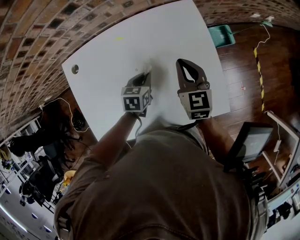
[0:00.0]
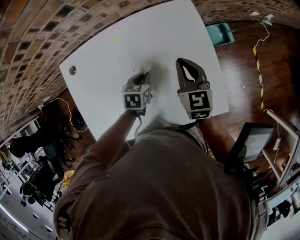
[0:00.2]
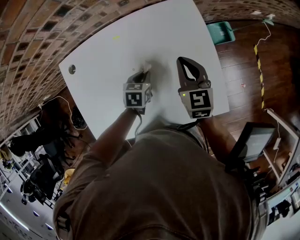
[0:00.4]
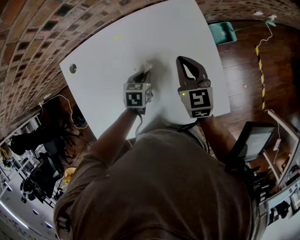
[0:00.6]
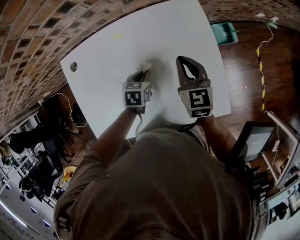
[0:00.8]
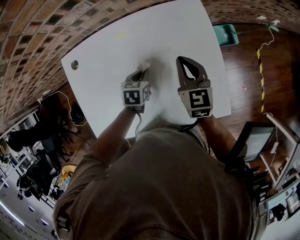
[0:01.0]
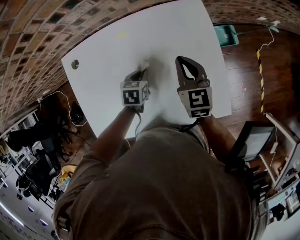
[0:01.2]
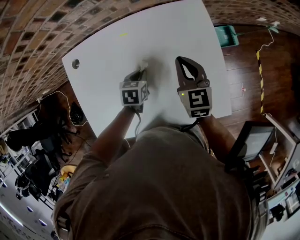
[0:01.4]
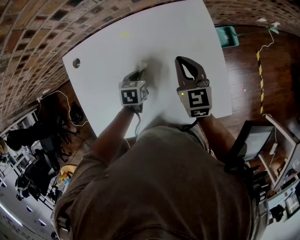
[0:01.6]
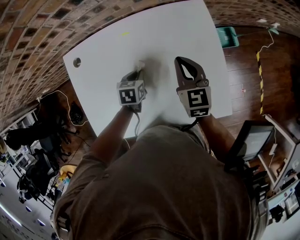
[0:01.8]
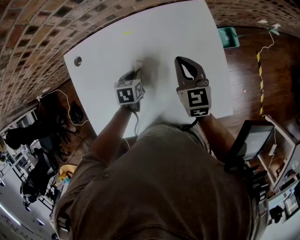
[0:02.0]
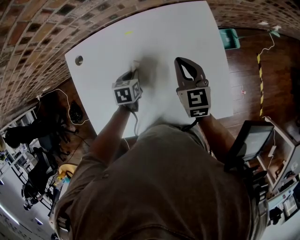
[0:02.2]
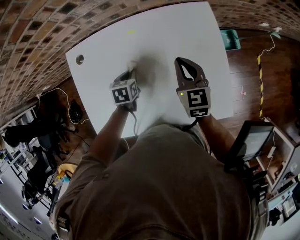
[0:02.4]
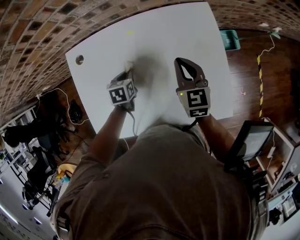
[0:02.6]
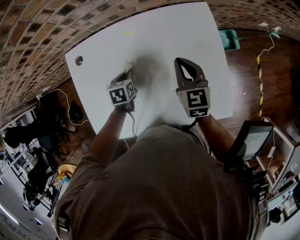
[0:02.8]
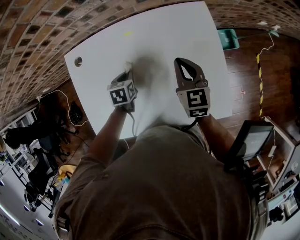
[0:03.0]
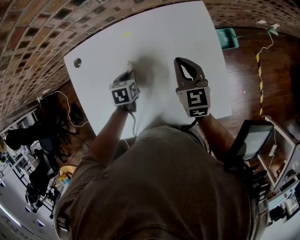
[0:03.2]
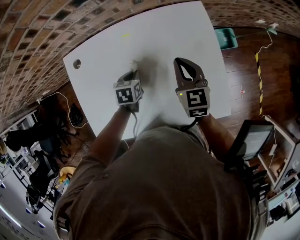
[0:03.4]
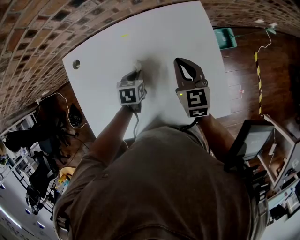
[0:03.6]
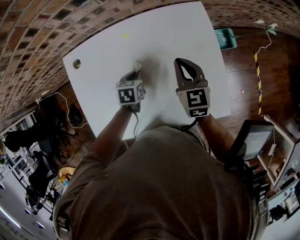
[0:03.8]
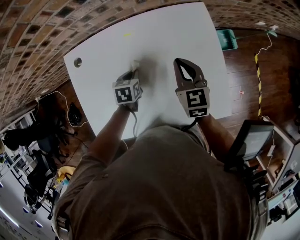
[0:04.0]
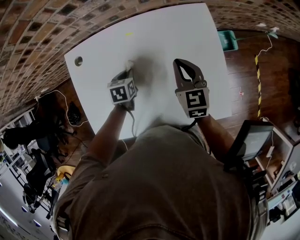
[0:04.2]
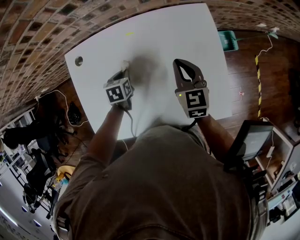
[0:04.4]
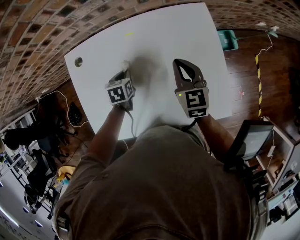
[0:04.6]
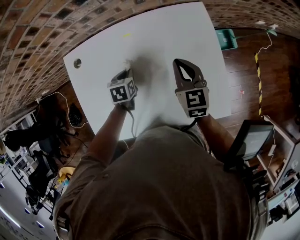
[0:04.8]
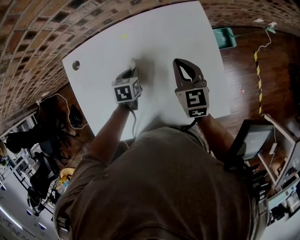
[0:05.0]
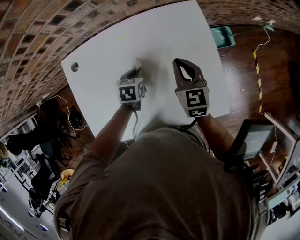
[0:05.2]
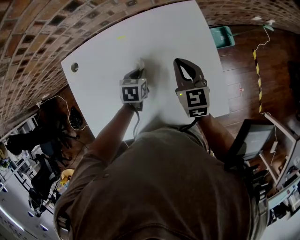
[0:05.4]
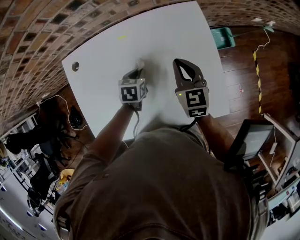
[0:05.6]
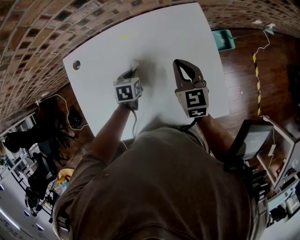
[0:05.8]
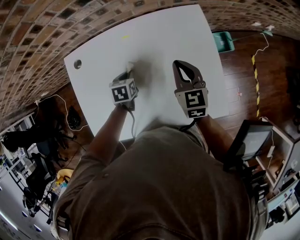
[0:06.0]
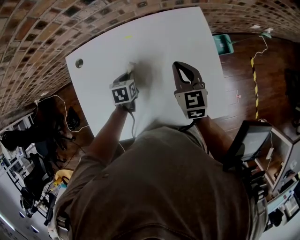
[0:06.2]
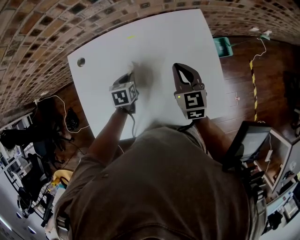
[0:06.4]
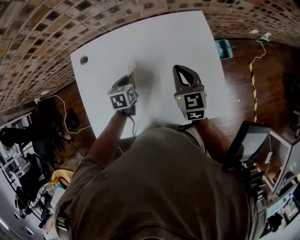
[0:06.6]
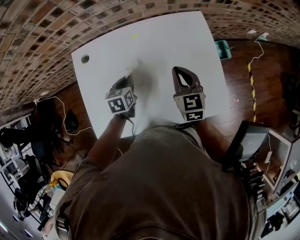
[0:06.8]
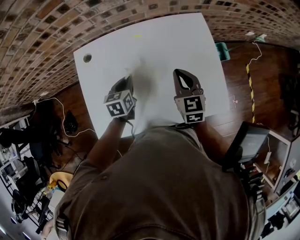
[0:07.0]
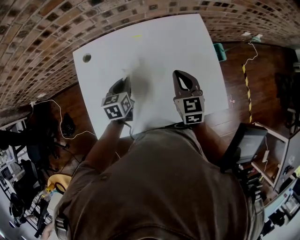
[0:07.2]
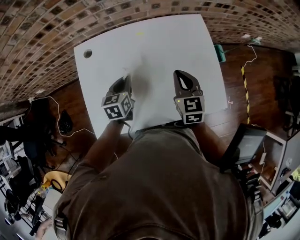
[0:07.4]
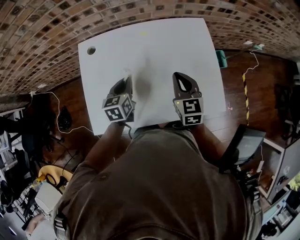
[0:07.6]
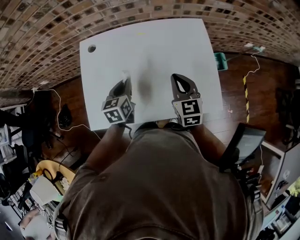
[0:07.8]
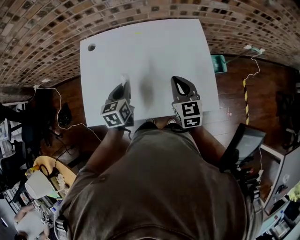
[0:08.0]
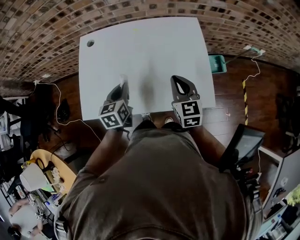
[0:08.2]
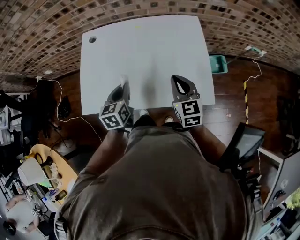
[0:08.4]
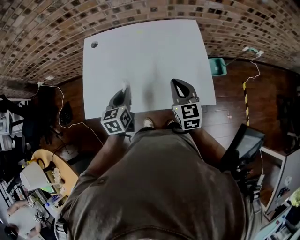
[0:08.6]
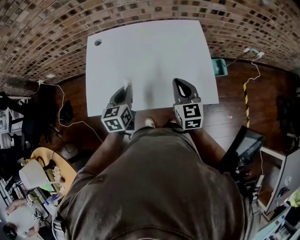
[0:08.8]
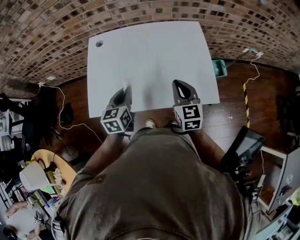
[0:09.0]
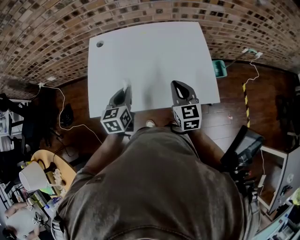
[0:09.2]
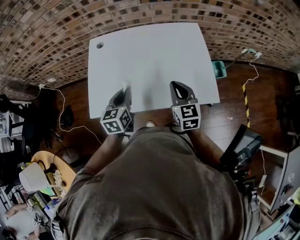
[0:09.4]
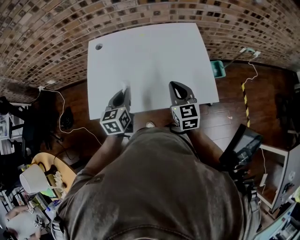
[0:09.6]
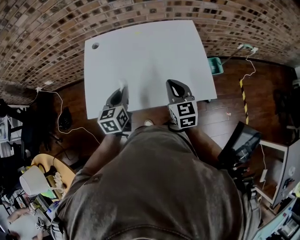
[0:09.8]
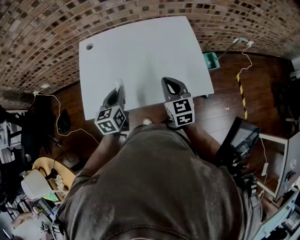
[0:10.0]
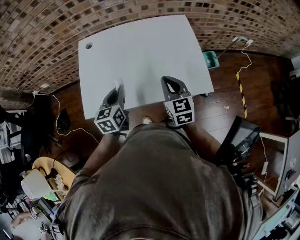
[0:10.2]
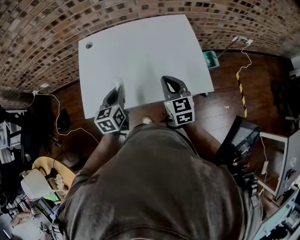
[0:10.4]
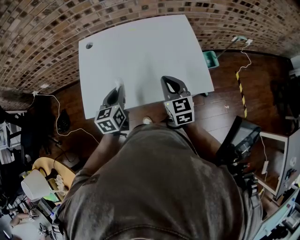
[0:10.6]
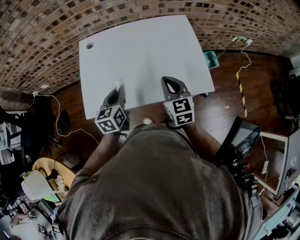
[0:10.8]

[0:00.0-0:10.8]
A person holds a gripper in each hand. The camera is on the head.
0:00.0 to 0:01.6: The left gripper heads to the left, covering approximately 5 cm.
0:01.6 to 0:03.0: The left gripper travels to the left by some 5 cm.
0:03.0 to 0:04.6: The left gripper travels to the right and back again, approximately 5 cm each way.
0:04.6 to 0:06.2: The left gripper travels to the right and back again, approximately 10 cm each way.
0:06.2 to 0:07.8: The left gripper travels upward and backward by some 15 cm, and swivels some 30 degrees; the right gripper shifts about 10 cm backward.
0:07.8 to 0:09.2: The two grippers go approximately 10 cm backward.
0:09.2 to 0:10.8: The grippers move only a little.

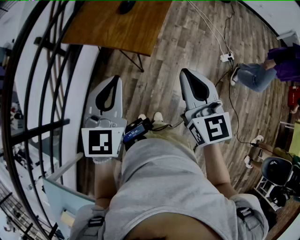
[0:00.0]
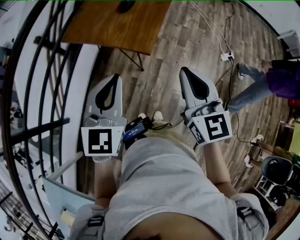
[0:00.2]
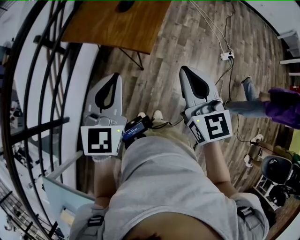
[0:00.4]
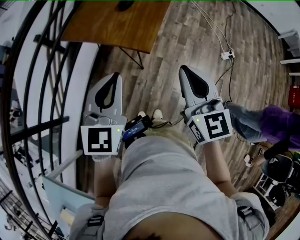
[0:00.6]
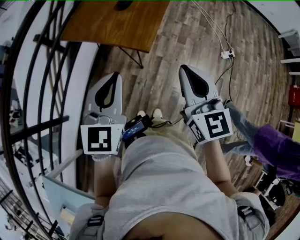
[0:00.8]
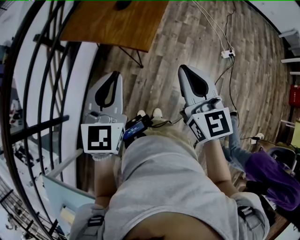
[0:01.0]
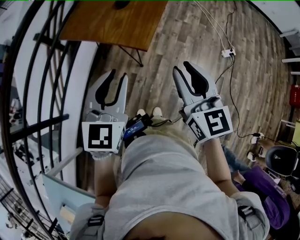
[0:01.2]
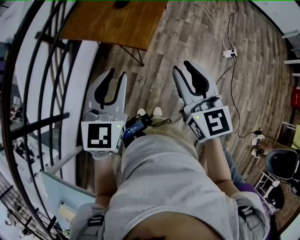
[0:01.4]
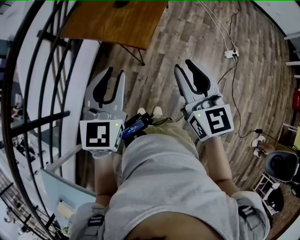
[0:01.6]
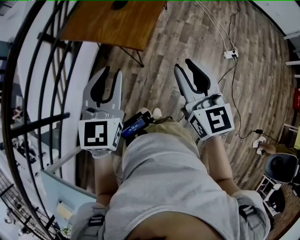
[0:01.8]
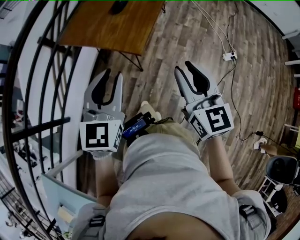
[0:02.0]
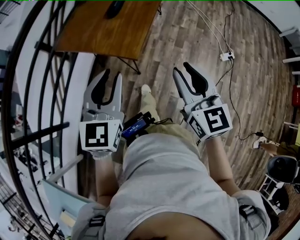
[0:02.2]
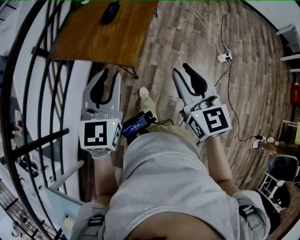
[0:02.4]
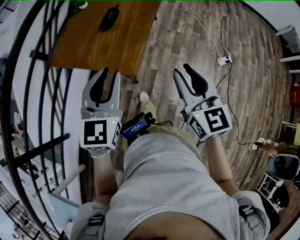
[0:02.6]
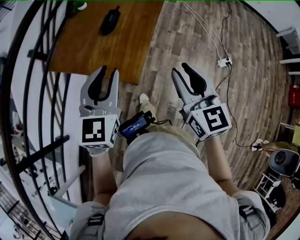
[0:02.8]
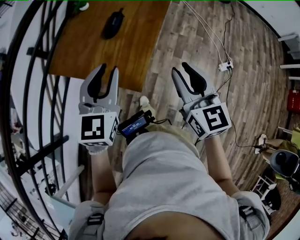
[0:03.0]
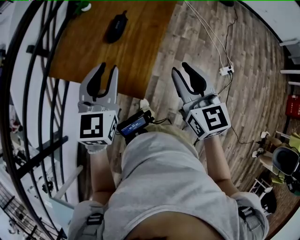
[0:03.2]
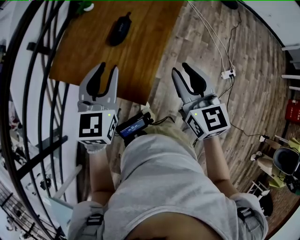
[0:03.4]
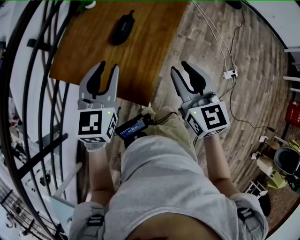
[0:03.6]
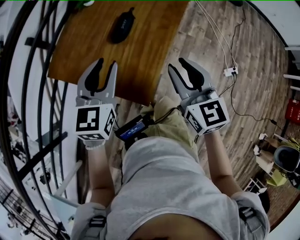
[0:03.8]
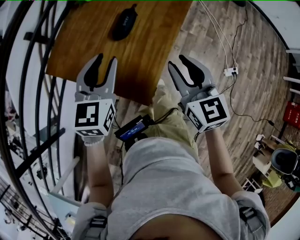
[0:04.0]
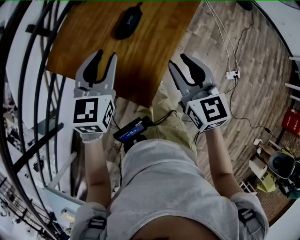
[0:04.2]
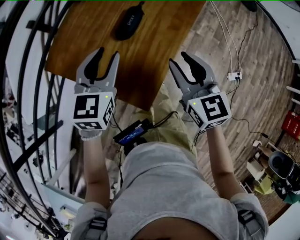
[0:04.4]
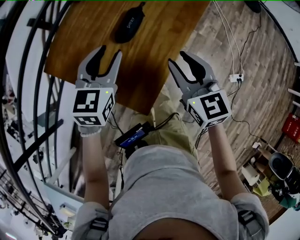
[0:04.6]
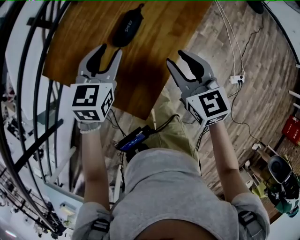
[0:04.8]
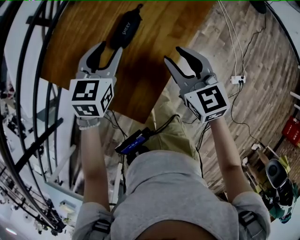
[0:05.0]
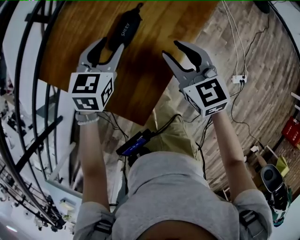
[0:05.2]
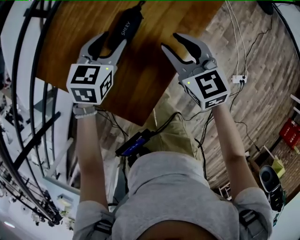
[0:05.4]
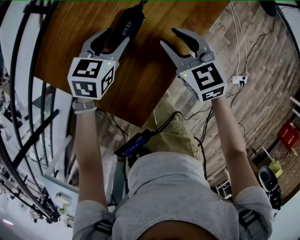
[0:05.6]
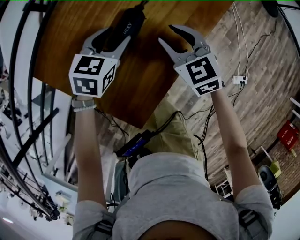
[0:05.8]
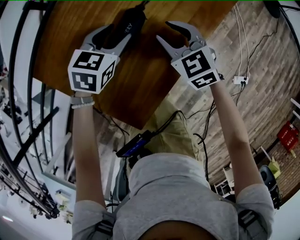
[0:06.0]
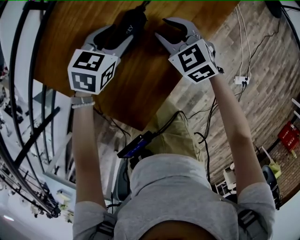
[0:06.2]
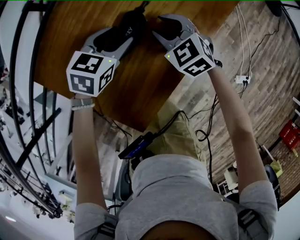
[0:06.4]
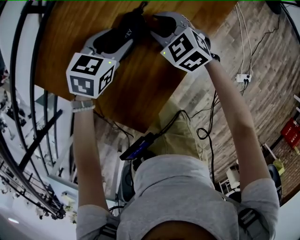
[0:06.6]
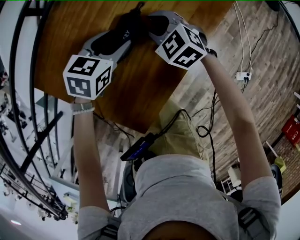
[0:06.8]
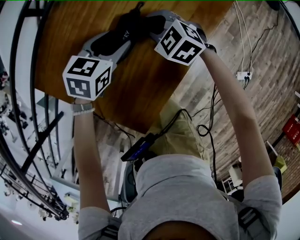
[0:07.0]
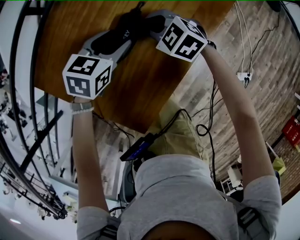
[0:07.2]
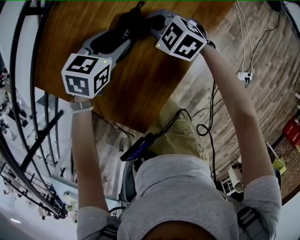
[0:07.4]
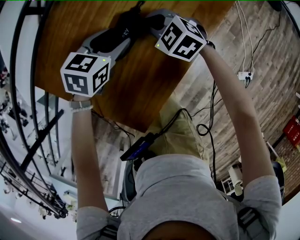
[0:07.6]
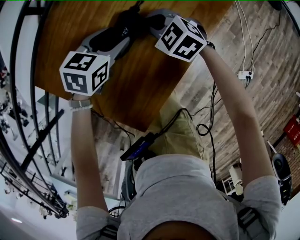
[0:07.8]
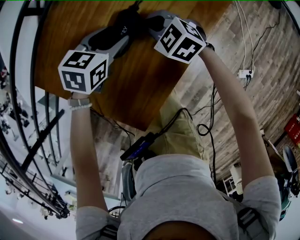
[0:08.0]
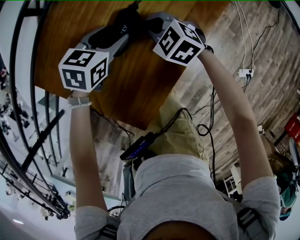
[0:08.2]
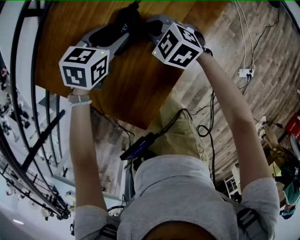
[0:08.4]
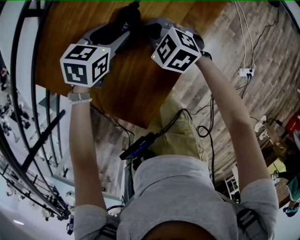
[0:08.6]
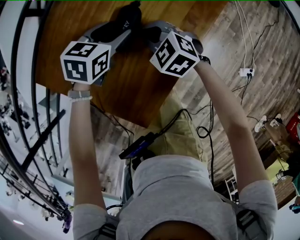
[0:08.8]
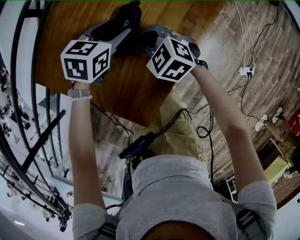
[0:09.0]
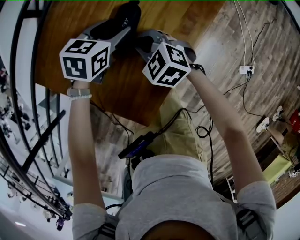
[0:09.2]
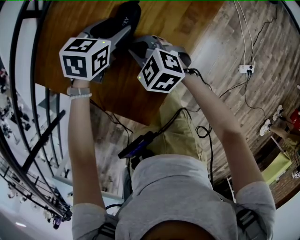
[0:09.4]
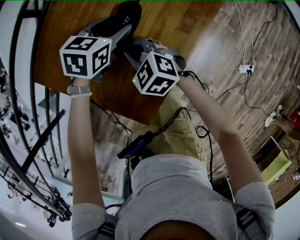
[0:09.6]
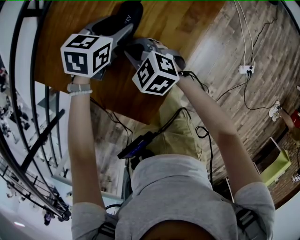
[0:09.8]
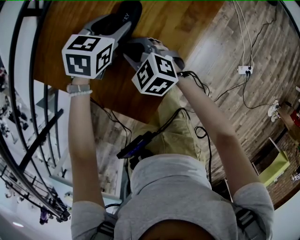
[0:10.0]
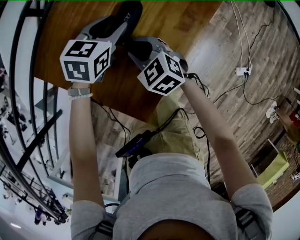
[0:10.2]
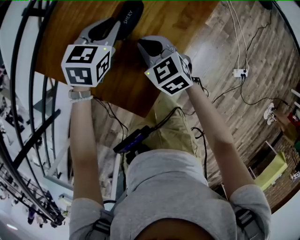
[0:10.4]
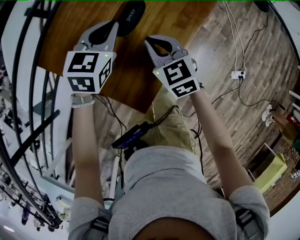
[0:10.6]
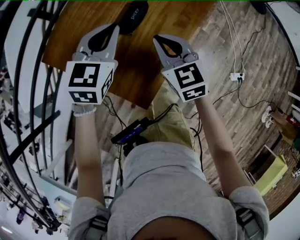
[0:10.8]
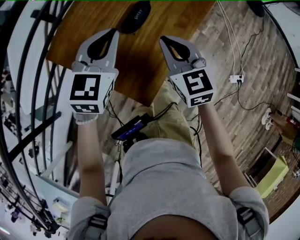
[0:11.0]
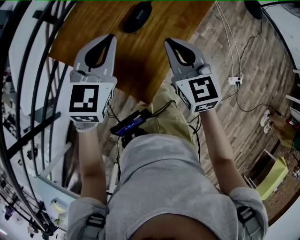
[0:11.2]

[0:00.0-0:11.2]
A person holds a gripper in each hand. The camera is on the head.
0:00.0 to 0:01.6: The right gripper opens its fingers. The left gripper opens its fingers.
0:01.6 to 0:03.2: The grippers both shift forward by about 25 cm.
0:03.2 to 0:04.8: The grippers both shift forward and downward by some 15 cm. The right gripper turns by roughly 20 degrees.
0:04.8 to 0:06.4: The left gripper travels forward and downward by about 15 cm, while the right gripper shifts roughly 20 cm forward and downward, and turns by some 30 degrees.
0:06.4 to 0:08.0: The right gripper closes up.
0:08.0 to 0:09.6: The right gripper is displaced backward and to the left by some 10 cm.
0:09.6 to 0:11.2: The right gripper heads upward and backward, covering some 20 cm, changes its angle by some 40 degrees, and opens, then closes again, while the left gripper moves upward, backward and to the left, approximately 25 cm, changes its angle by about 30 degrees, and closes its fingers.

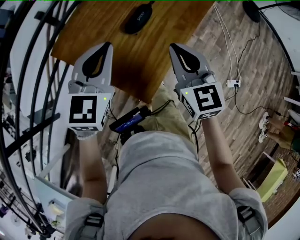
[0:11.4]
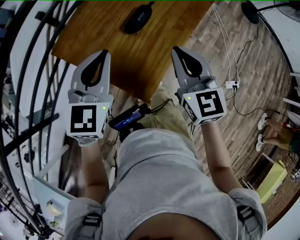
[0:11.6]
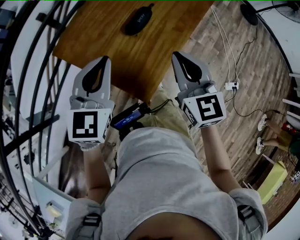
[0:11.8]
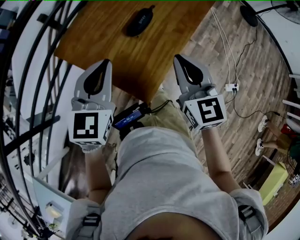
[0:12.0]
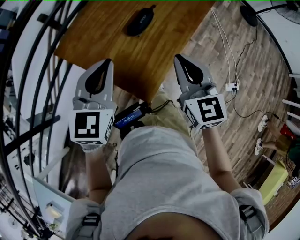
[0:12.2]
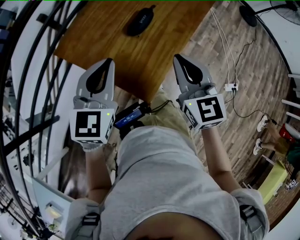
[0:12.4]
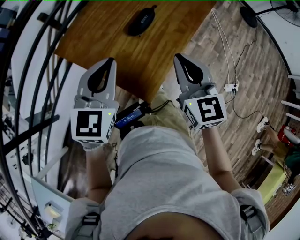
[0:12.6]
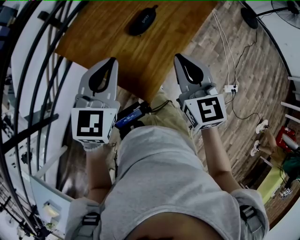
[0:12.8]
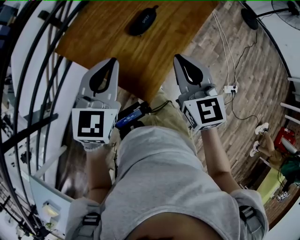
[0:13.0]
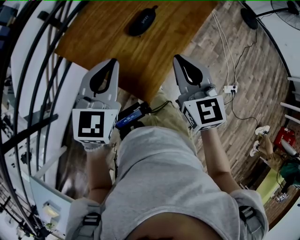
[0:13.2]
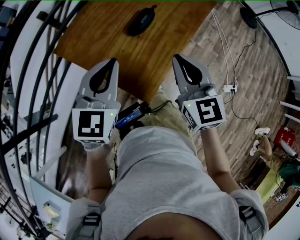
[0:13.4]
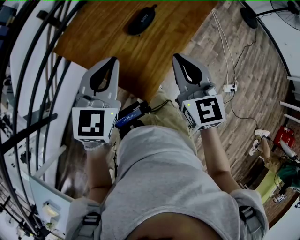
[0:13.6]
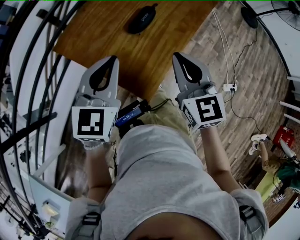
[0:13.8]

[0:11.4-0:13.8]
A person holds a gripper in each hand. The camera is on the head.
0:11.4 to 0:12.6: The grippers move only a little.
0:12.6 to 0:13.8: The two grippers keep their place.
